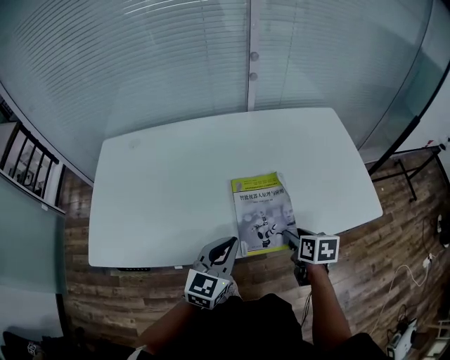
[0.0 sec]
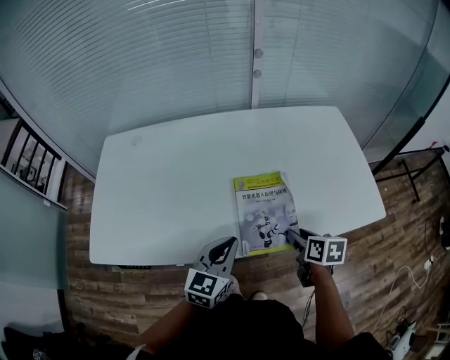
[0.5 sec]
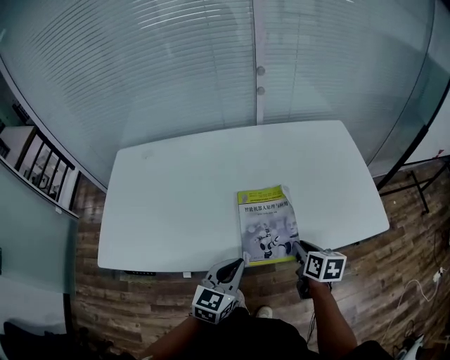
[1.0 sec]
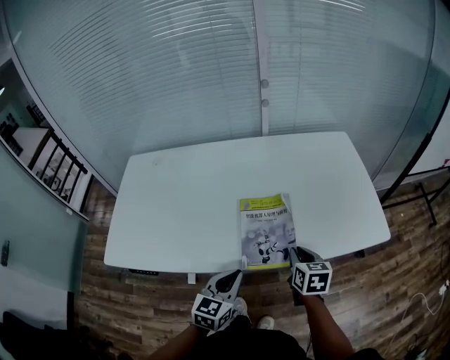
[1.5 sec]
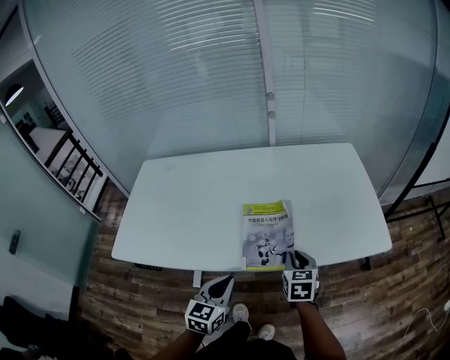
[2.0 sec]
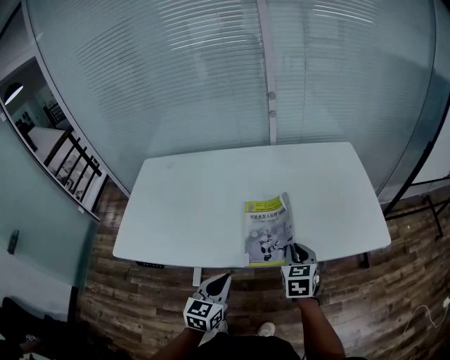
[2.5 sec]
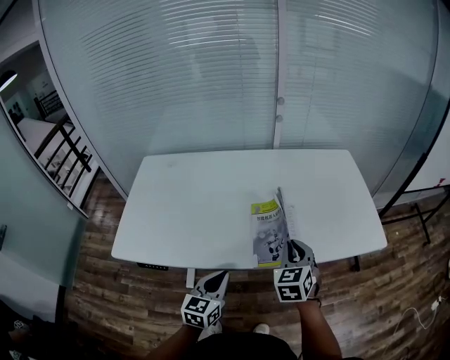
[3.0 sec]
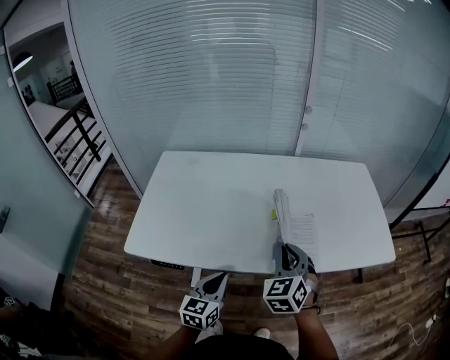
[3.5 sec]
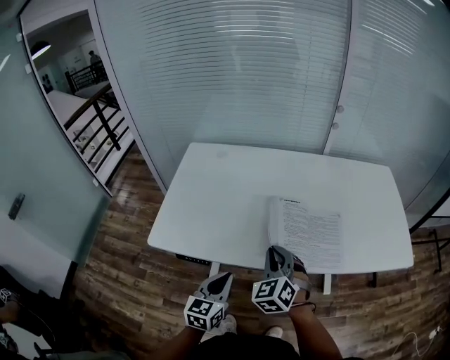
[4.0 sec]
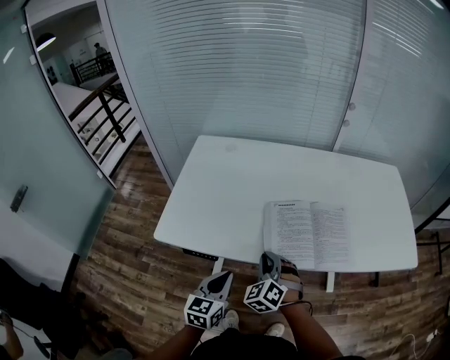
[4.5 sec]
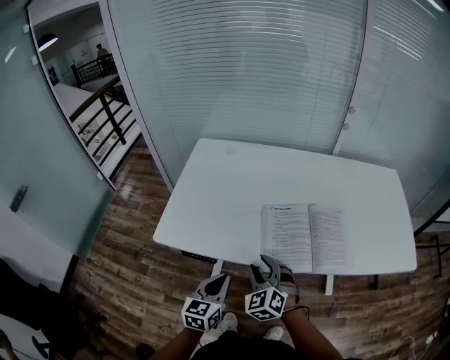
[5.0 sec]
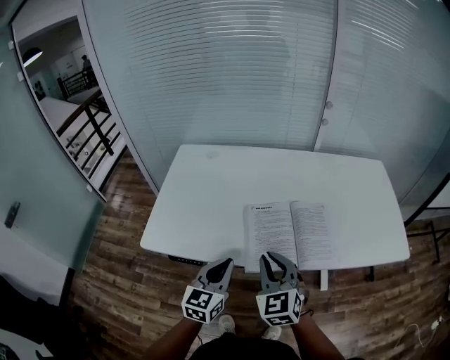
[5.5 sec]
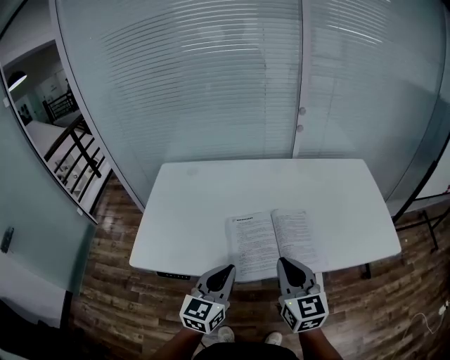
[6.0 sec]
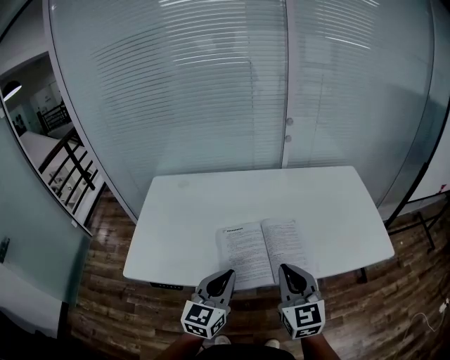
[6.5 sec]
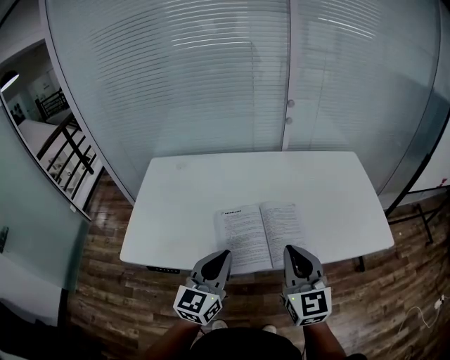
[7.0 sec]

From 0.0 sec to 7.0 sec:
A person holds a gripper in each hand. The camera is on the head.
From 0.0 sec to 2.0 sec: The right gripper swivels some 30 degrees, and closes its fingers; the left gripper shifts about 10 cm backward.
From 2.0 sec to 3.5 sec: The left gripper travels to the left by some 15 cm; the right gripper moves to the left and upward, approximately 20 cm, and changes its angle by about 40 degrees.
From 3.5 sec to 5.0 sec: The right gripper is displaced to the left and downward by about 20 cm, swivels some 30 degrees, and opens up. Meanwhile the left gripper is displaced to the left by some 10 cm.
From 5.0 sec to 7.0 sec: The right gripper travels to the right and upward by about 30 cm, changes its angle by roughly 40 degrees, and closes its fingers. Meanwhile the left gripper moves upward, to the right and forward, approximately 20 cm, and changes its angle by some 20 degrees.

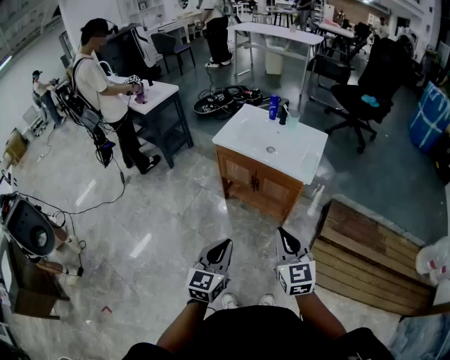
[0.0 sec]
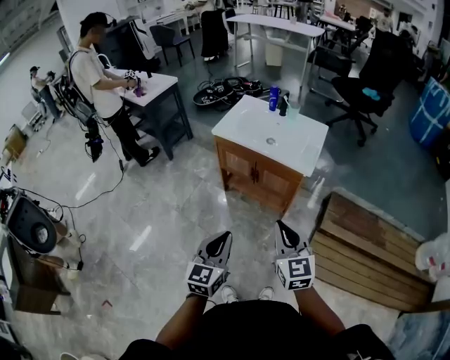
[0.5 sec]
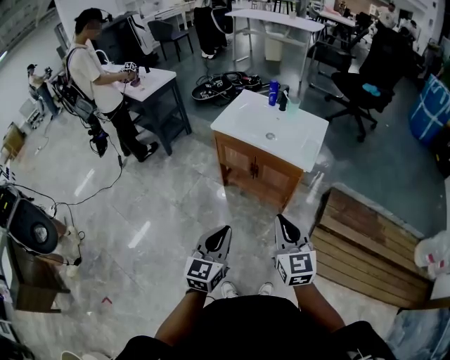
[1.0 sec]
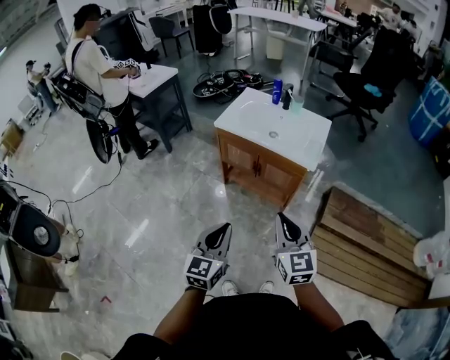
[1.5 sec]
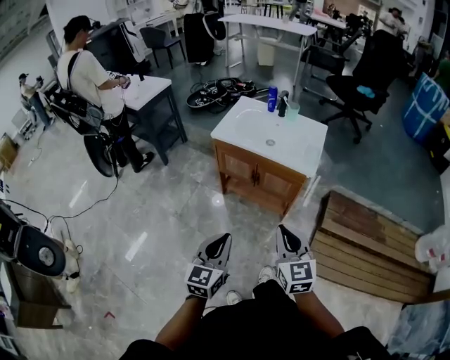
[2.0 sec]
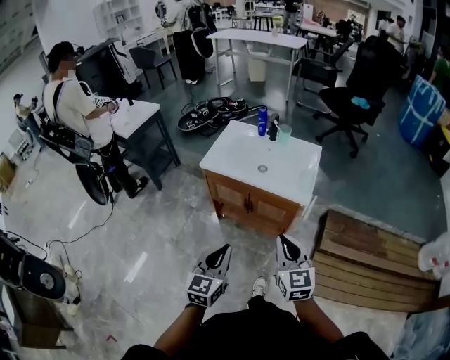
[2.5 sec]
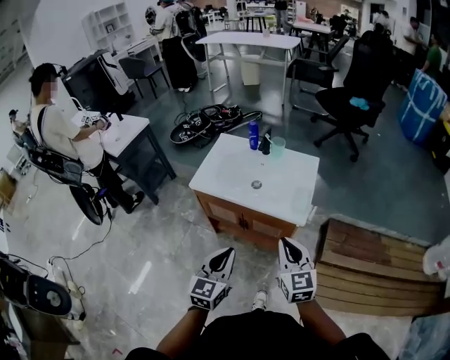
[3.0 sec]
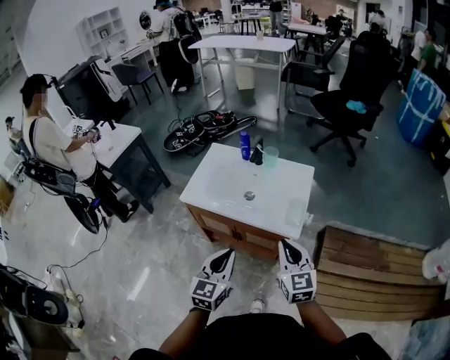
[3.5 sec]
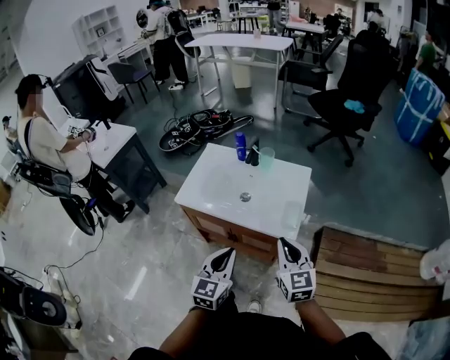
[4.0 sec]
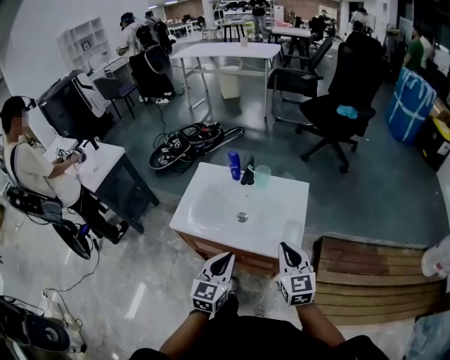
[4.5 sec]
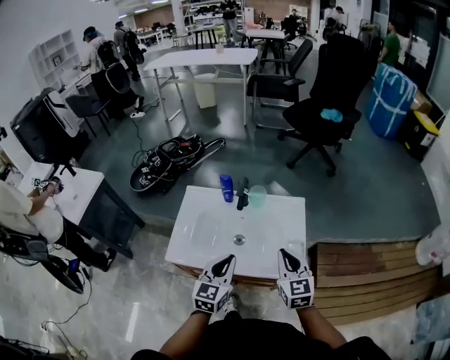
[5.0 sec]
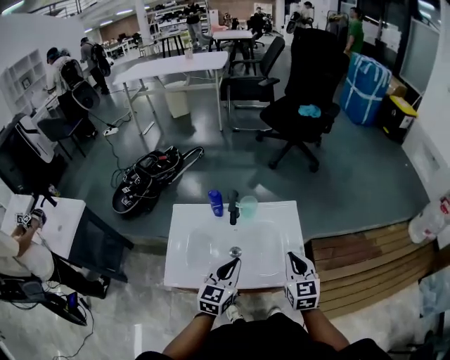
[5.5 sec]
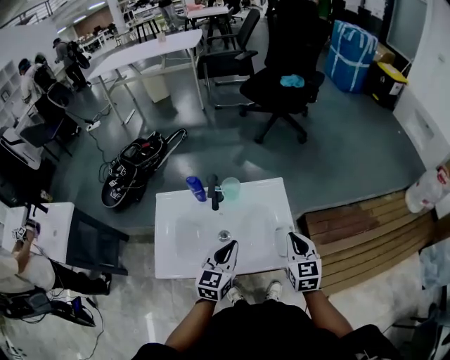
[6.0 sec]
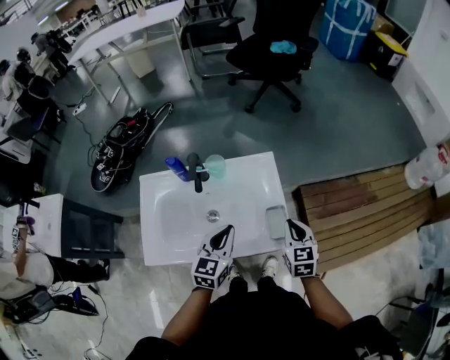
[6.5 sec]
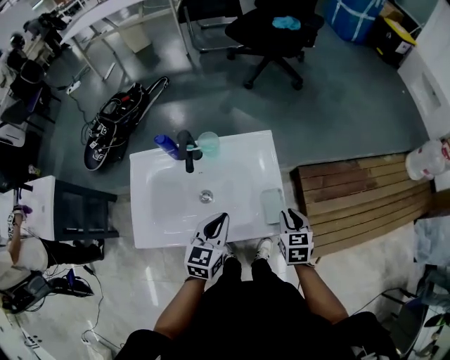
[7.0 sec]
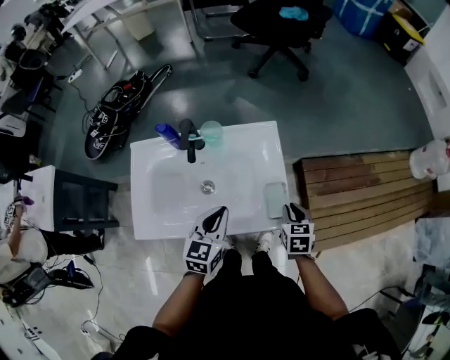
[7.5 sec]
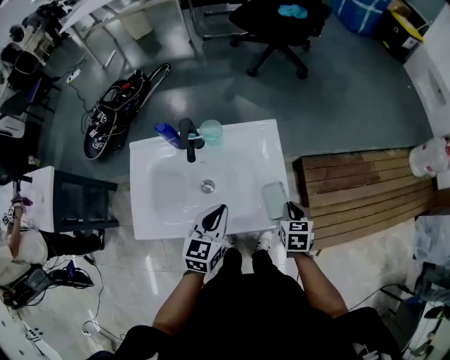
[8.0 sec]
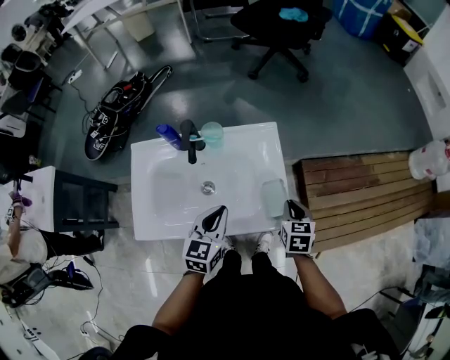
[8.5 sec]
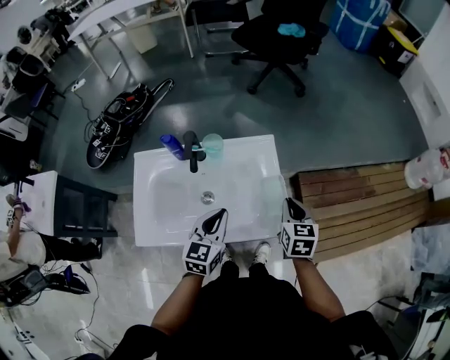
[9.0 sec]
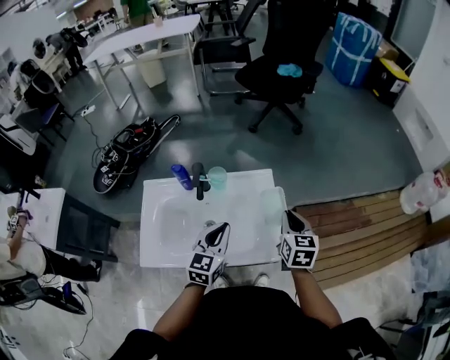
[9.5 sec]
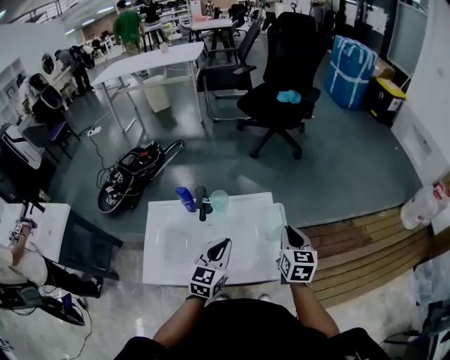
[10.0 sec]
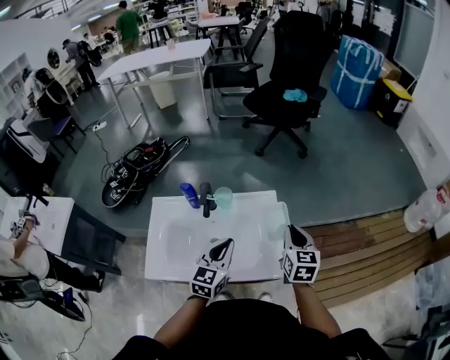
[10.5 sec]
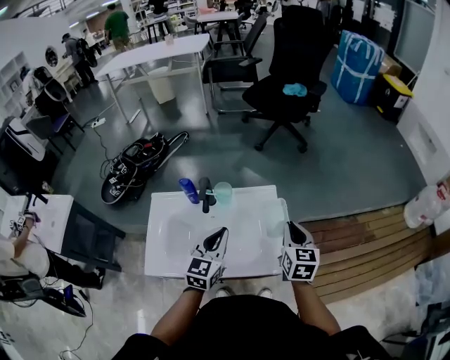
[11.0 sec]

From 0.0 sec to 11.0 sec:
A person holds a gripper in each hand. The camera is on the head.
From 0.0 sec to 2.0 sec: The left gripper moves some 5 cm.
From 2.0 sec to 3.5 sec: The two grippers go some 25 cm forward.
From 3.5 sec to 5.5 sec: The left gripper shifts by some 25 cm, and rotates some 30 degrees; the right gripper changes place by some 20 cm, and swivels about 30 degrees.
From 5.5 sec to 7.5 sec: The right gripper goes approximately 20 cm downward and to the right, and rotates roughly 30 degrees. The left gripper moves downward and to the right, approximately 10 cm.
From 7.5 sec to 9.0 sec: The right gripper travels upward by about 10 cm.
From 9.0 sec to 11.0 sec: The grippers both shift upward by approximately 10 cm.

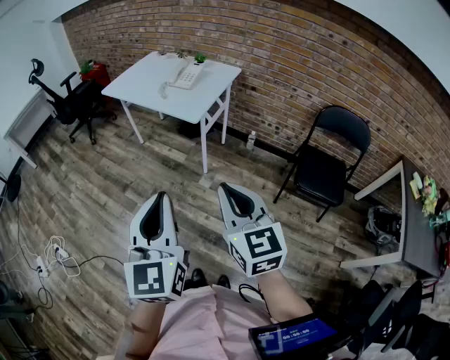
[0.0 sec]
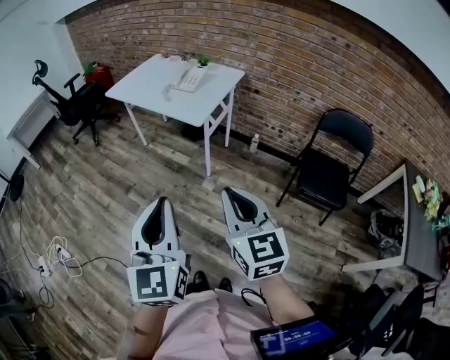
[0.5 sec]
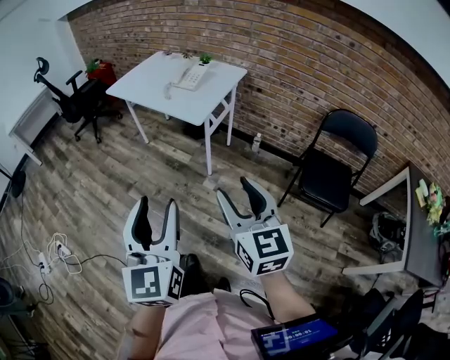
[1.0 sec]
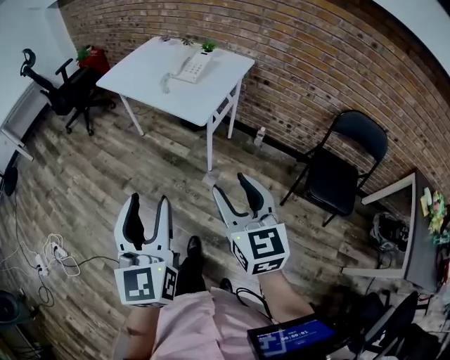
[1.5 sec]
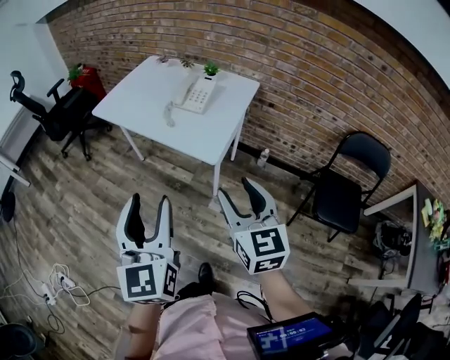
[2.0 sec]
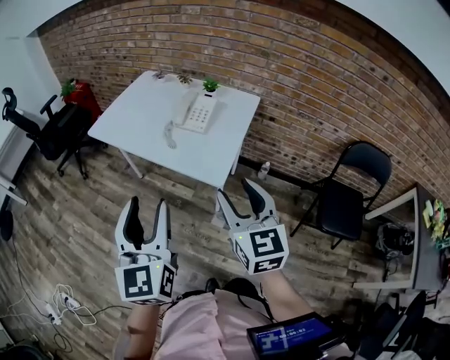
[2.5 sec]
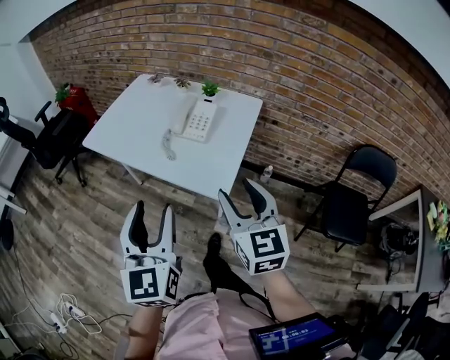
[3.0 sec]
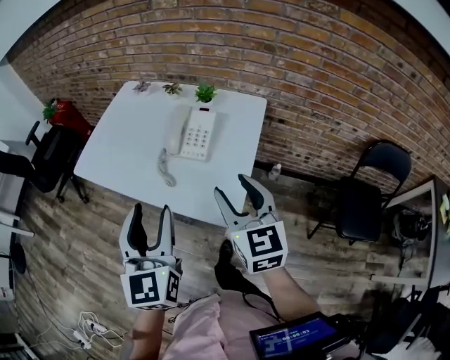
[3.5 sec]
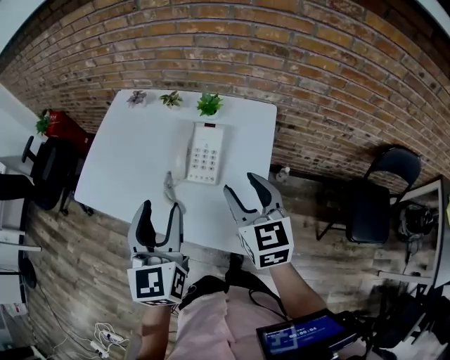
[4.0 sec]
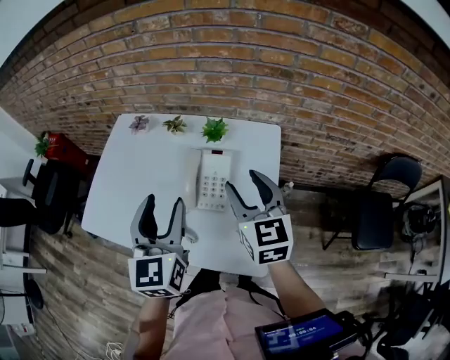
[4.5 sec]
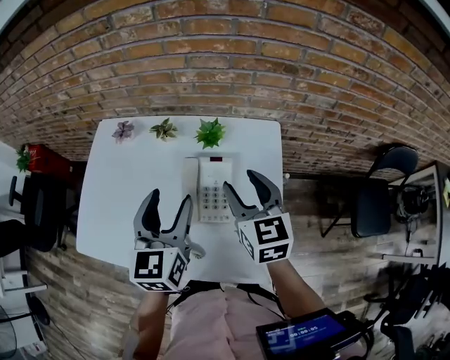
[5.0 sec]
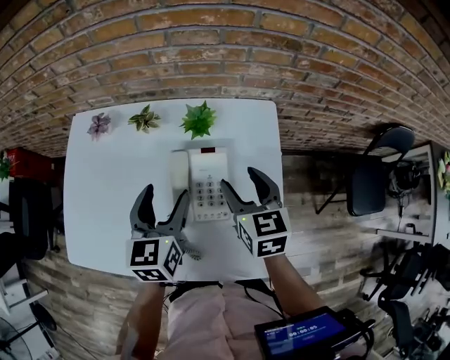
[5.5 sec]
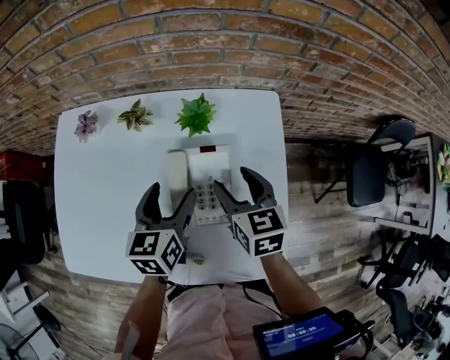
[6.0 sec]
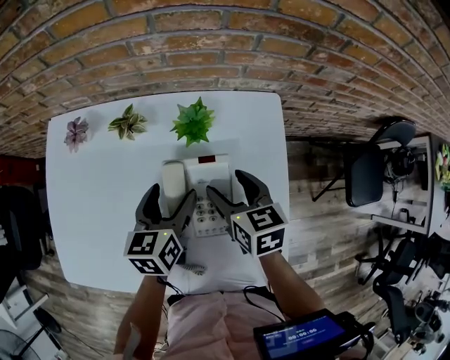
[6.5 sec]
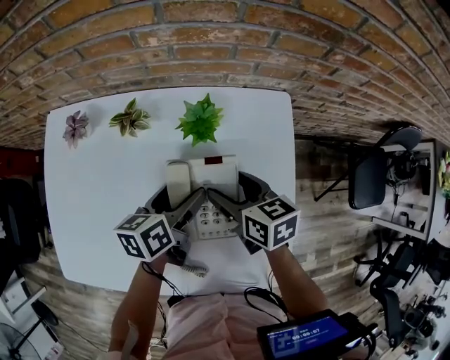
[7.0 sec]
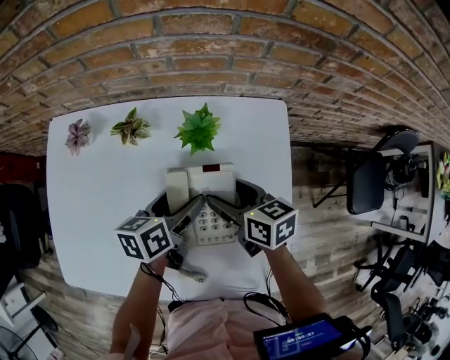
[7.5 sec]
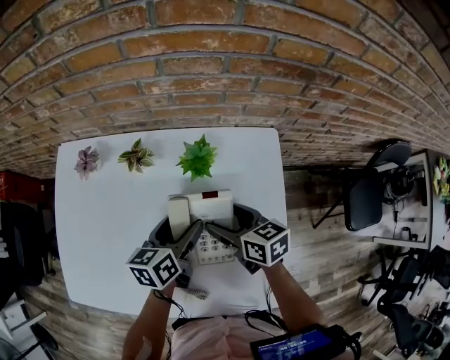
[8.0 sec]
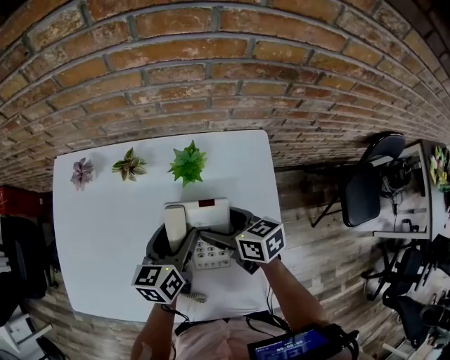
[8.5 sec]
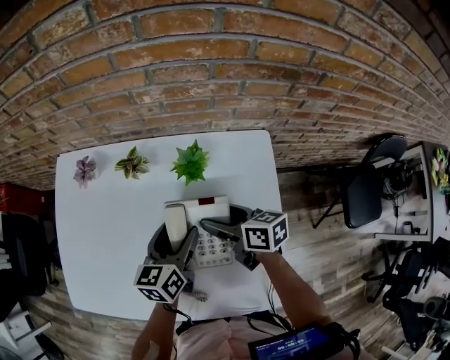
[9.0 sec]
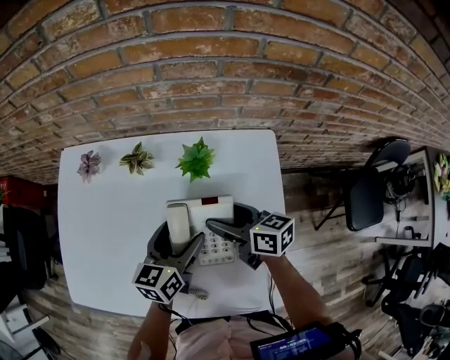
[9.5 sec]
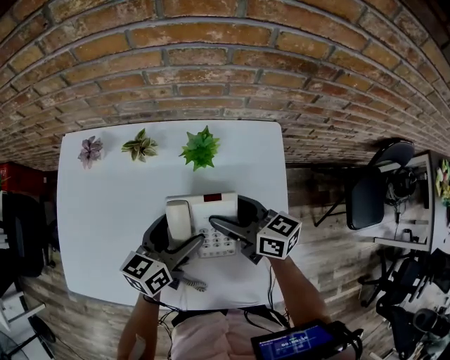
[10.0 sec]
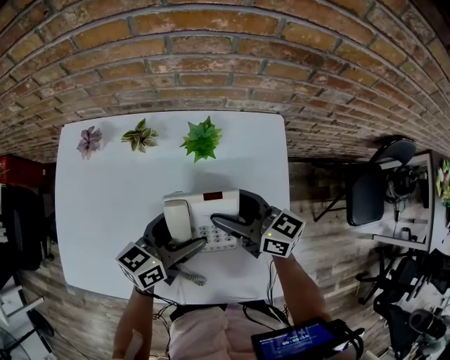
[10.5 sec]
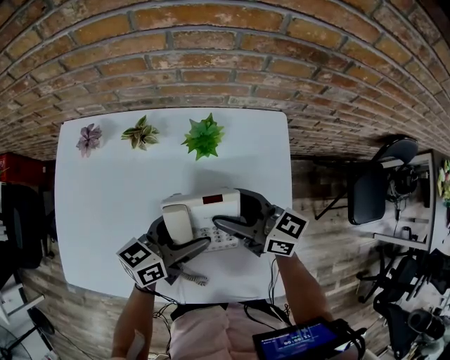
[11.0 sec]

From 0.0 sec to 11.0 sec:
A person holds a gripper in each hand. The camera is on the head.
From 0.0 sec to 2.0 sec: Both grippers travel together forward, some 30 cm. The right gripper opens. Meanwhile the left gripper opens up.
From 2.0 sec to 3.5 sec: Both grippers travel together forward, approximately 30 cm.
From 3.5 sec to 5.5 sec: Both grippers travel together forward and downward, approximately 35 cm. The right gripper swivels roughly 30 degrees. Meanwhile the left gripper rotates approximately 30 degrees.
From 5.5 sec to 7.5 sec: The left gripper travels downward and forward by approximately 15 cm, and changes its angle by roughly 40 degrees, while the right gripper is displaced downward by roughly 10 cm, and changes its angle by roughly 30 degrees.
From 7.5 sec to 9.0 sec: The left gripper rotates some 20 degrees.
From 9.0 sec to 11.0 sec: The right gripper heads upward, covering approximately 5 cm, and turns by approximately 30 degrees. The left gripper ends up approximately 5 cm from where it was, and swivels approximately 30 degrees.
